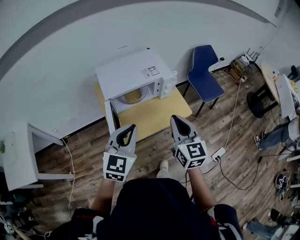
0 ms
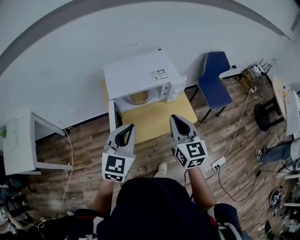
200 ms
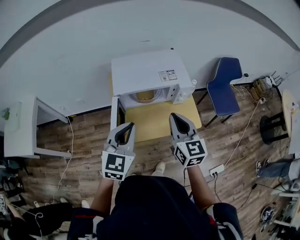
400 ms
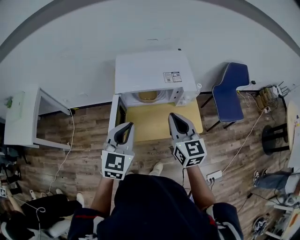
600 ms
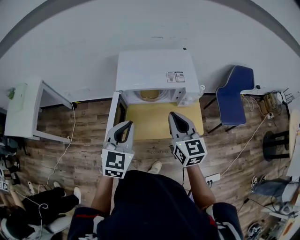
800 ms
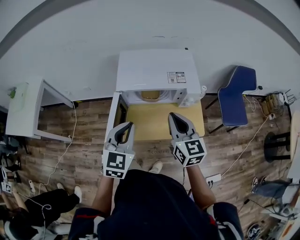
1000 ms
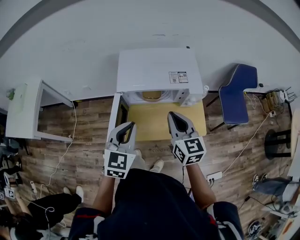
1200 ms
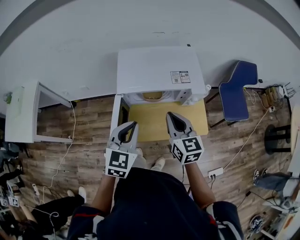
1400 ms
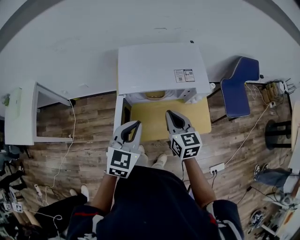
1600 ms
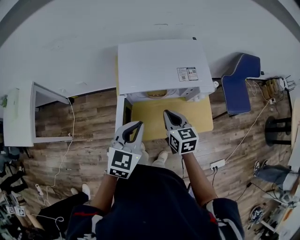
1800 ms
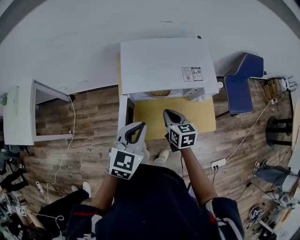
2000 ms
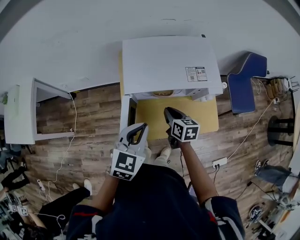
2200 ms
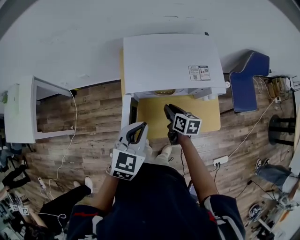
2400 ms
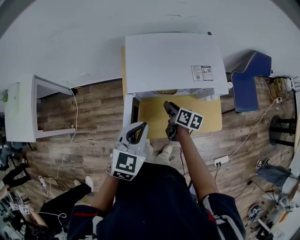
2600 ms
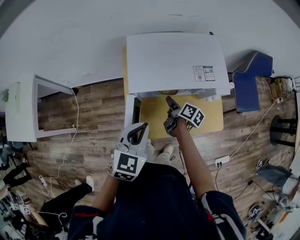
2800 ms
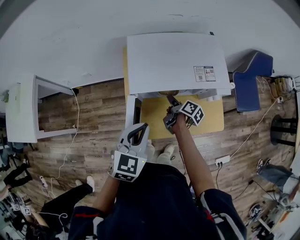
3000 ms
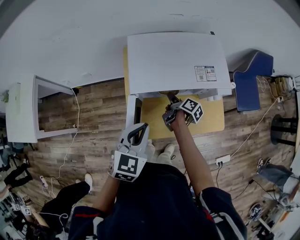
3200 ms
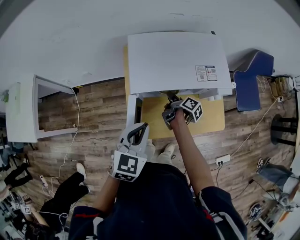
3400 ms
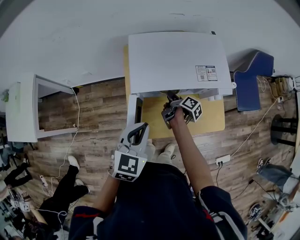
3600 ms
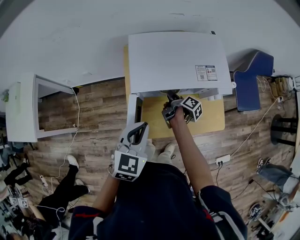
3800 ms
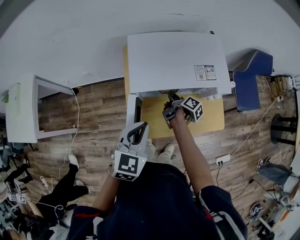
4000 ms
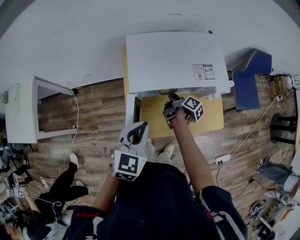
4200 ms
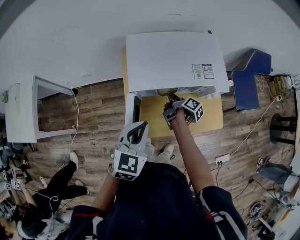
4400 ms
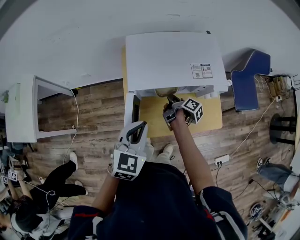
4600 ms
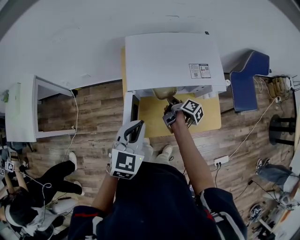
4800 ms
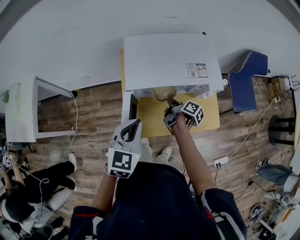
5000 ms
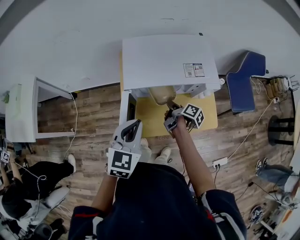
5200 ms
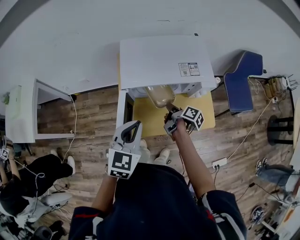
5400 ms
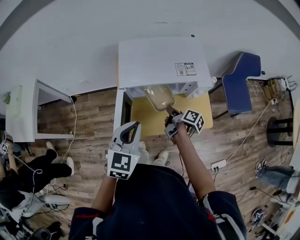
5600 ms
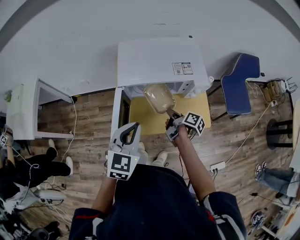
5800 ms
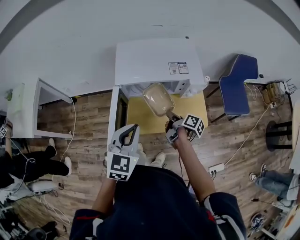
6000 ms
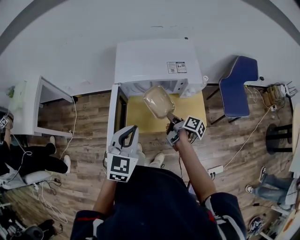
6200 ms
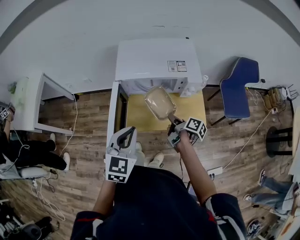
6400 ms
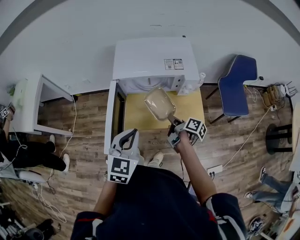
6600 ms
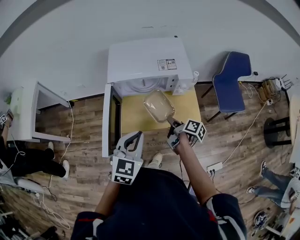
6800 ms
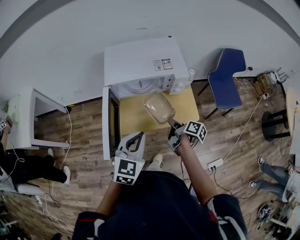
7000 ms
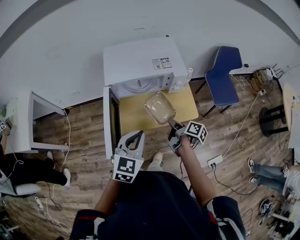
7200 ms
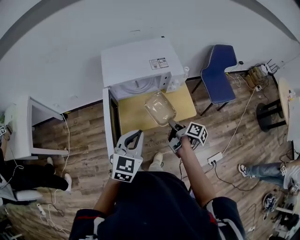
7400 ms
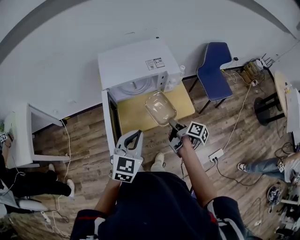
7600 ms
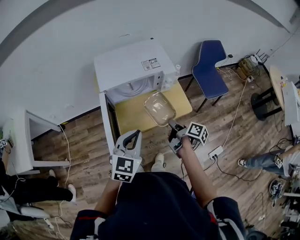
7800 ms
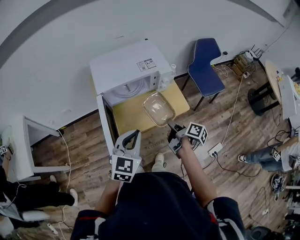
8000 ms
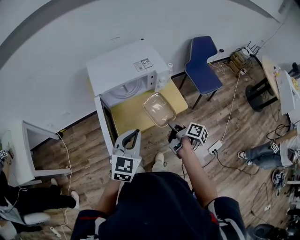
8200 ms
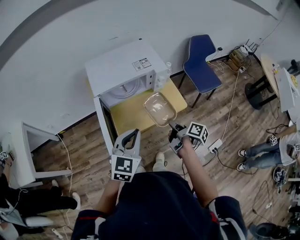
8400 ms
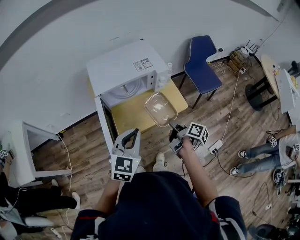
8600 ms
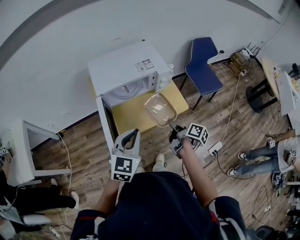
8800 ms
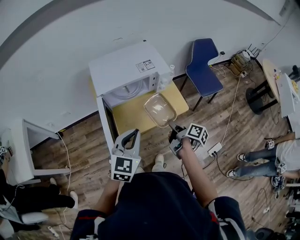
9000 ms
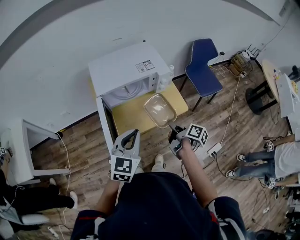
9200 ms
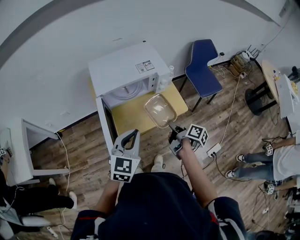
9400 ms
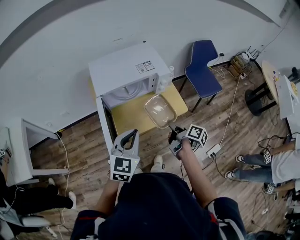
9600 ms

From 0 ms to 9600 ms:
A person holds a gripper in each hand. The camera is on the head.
From 0 ms to 1600 ms: The right gripper moves roughly 20 cm, and turns by roughly 30 degrees, while the left gripper shifts by about 15 cm, and turns by roughly 20 degrees.
From 1600 ms to 3200 ms: The left gripper changes place by some 5 cm, while the right gripper heads downward and forward, covering some 25 cm, twists some 70 degrees clockwise, seen from behind, and opens its fingers.
From 3200 ms to 4800 ms: The grippers move only a little.
From 4800 ms to 6400 ms: Both grippers move backward and to the right, about 15 cm.
From 6400 ms to 8000 ms: The left gripper swivels roughly 20 degrees. Meanwhile the right gripper travels backward and upward by roughly 10 cm, and swivels approximately 20 degrees.
From 8000 ms to 9600 ms: The grippers move only a little.

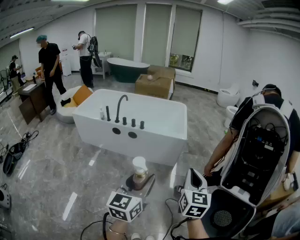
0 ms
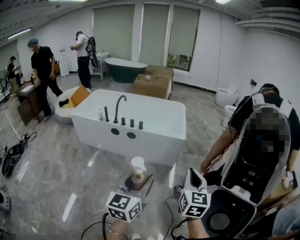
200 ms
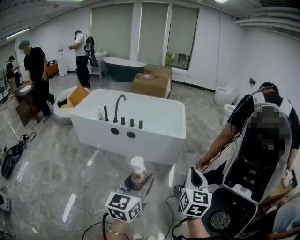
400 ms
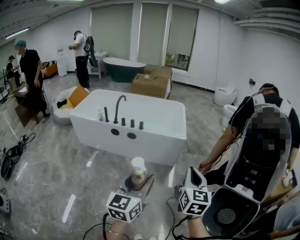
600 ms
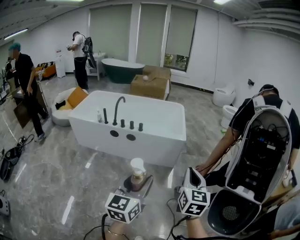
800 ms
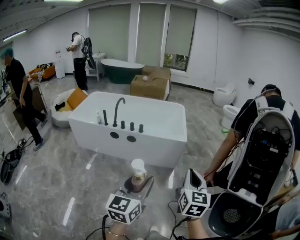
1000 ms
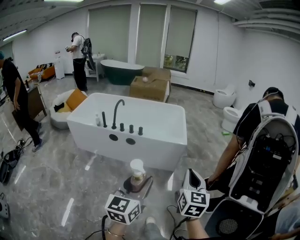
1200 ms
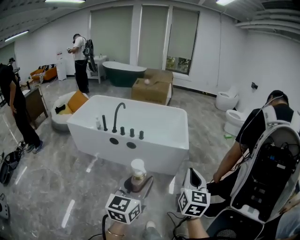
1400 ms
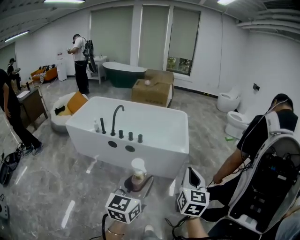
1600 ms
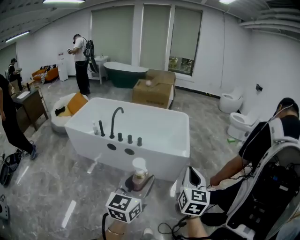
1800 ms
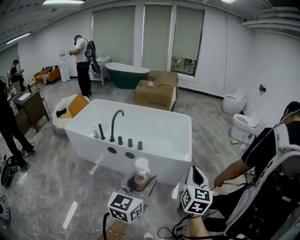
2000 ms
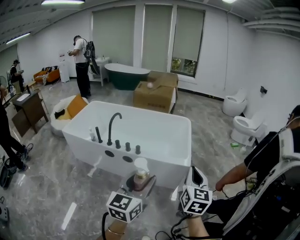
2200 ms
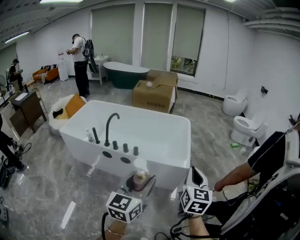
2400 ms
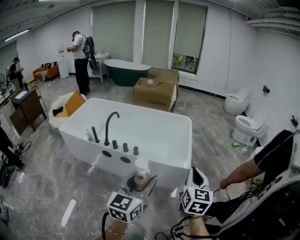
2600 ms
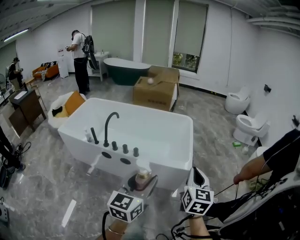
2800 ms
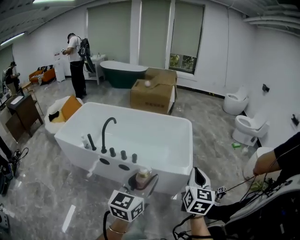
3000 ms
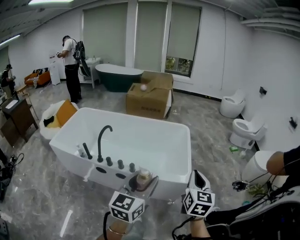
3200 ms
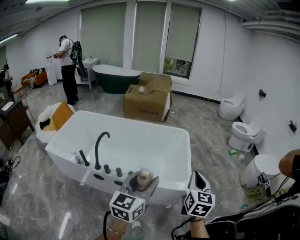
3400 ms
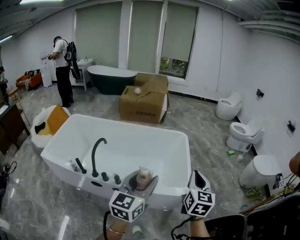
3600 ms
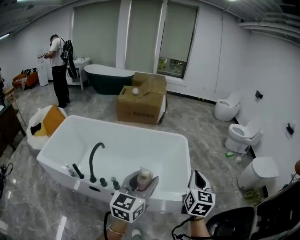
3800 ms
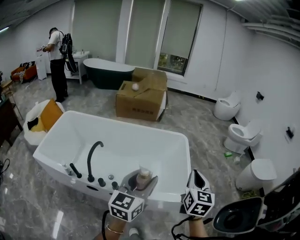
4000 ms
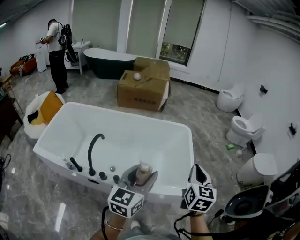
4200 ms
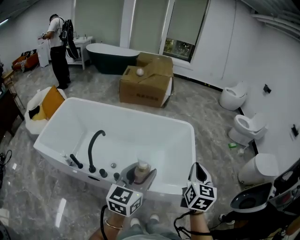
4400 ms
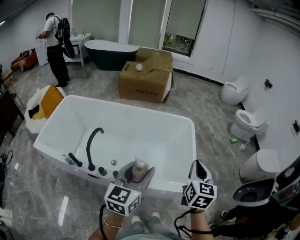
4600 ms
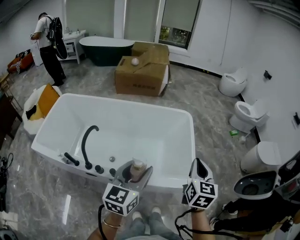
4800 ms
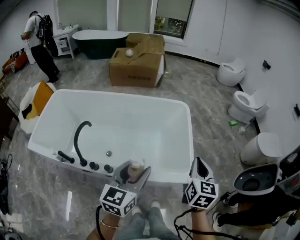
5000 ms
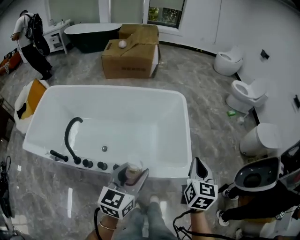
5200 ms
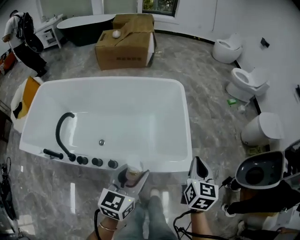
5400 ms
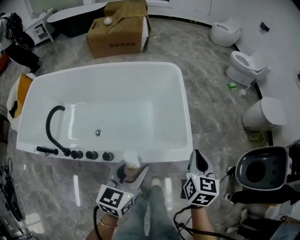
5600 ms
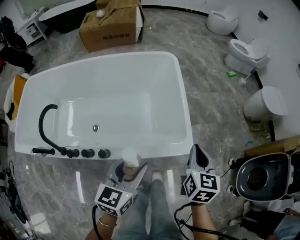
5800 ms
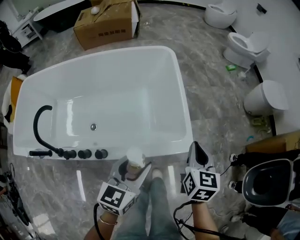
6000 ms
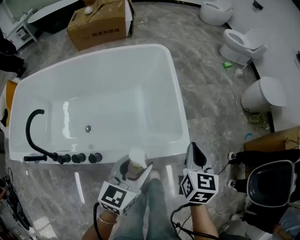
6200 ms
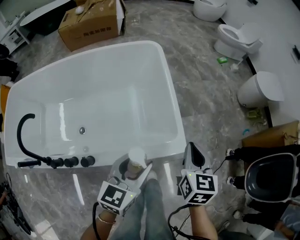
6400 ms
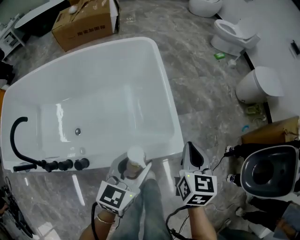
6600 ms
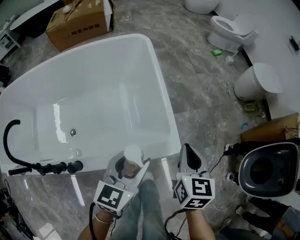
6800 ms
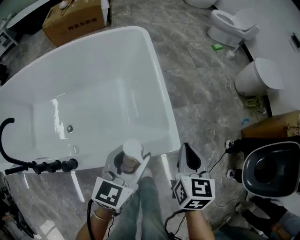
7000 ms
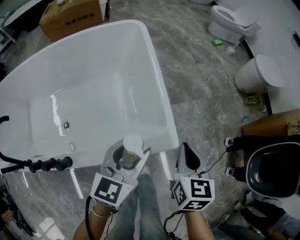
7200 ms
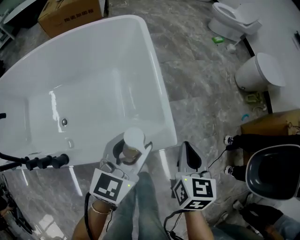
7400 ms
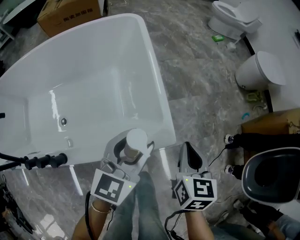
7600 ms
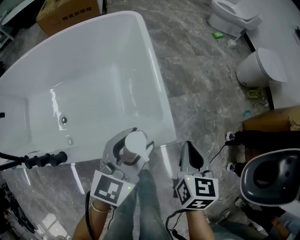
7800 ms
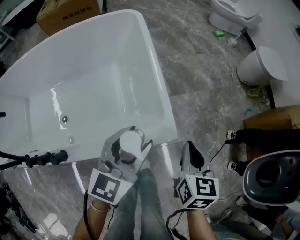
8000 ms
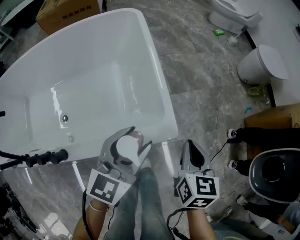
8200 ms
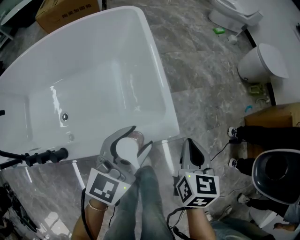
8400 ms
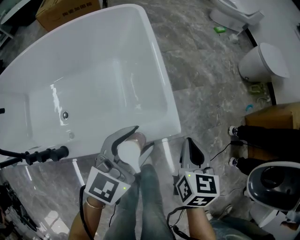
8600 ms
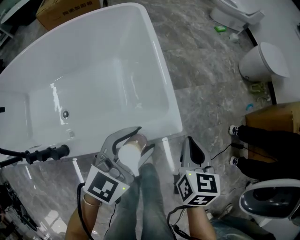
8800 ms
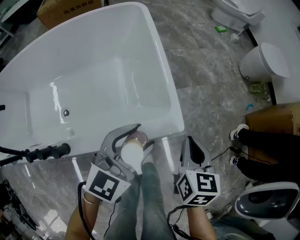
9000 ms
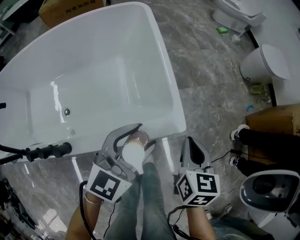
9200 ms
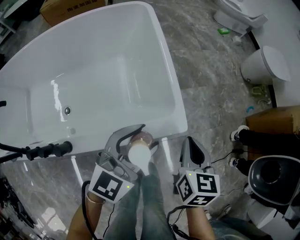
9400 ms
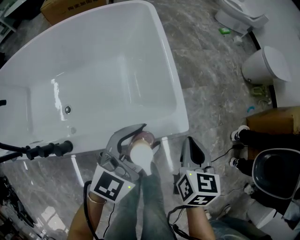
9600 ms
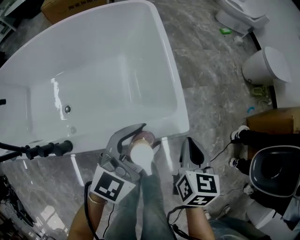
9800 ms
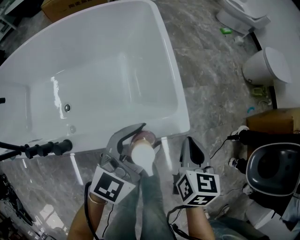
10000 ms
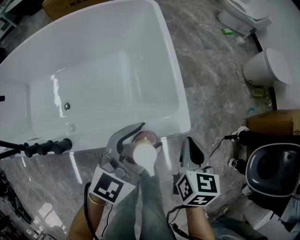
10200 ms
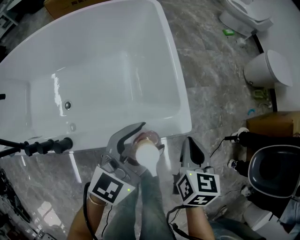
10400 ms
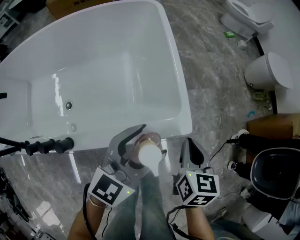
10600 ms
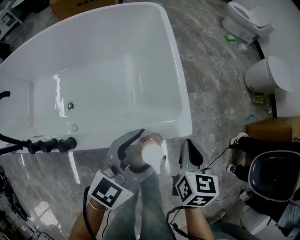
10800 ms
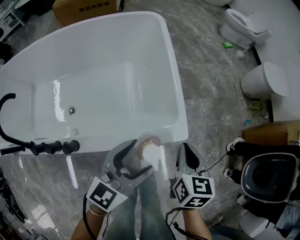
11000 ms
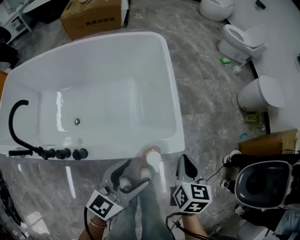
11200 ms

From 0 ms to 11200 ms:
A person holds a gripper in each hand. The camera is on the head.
From 0 ms to 1600 ms: The grippers both shift forward by roughly 15 cm.
From 1600 ms to 3200 ms: Both grippers move forward, about 35 cm.
From 3200 ms to 4800 ms: Both grippers travel together forward and to the left, approximately 25 cm.
From 4800 ms to 6400 ms: The right gripper is displaced downward and to the right by roughly 30 cm. Meanwhile the left gripper heads downward, to the right and forward, covering approximately 30 cm, and turns by some 30 degrees.
From 6400 ms to 8000 ms: The right gripper moves downward and to the right, about 15 cm. Meanwhile the left gripper travels forward, to the right and downward by about 10 cm.
From 9600 ms to 11200 ms: The right gripper moves upward, some 5 cm; the left gripper travels backward and upward by roughly 10 cm, and swivels approximately 30 degrees.

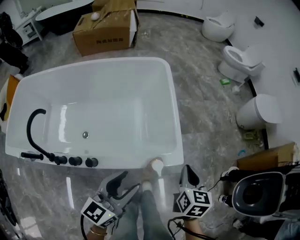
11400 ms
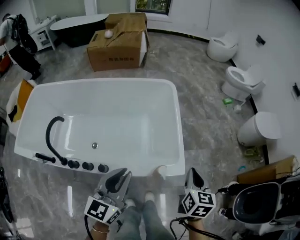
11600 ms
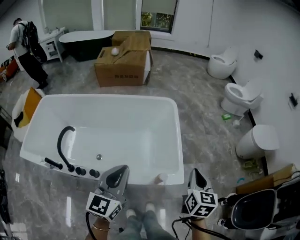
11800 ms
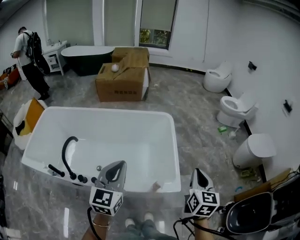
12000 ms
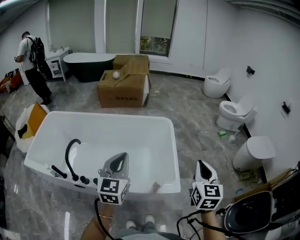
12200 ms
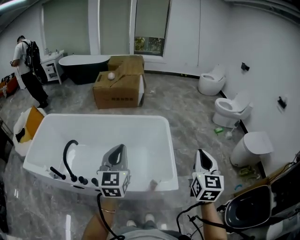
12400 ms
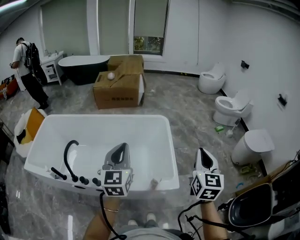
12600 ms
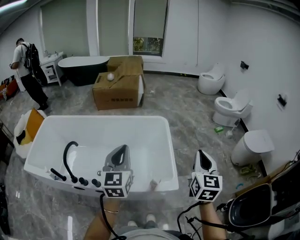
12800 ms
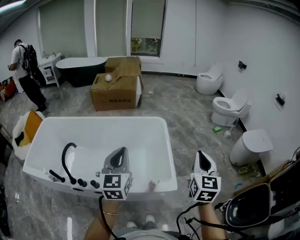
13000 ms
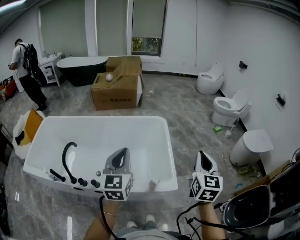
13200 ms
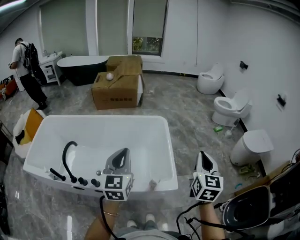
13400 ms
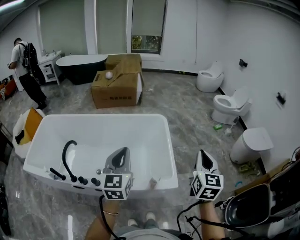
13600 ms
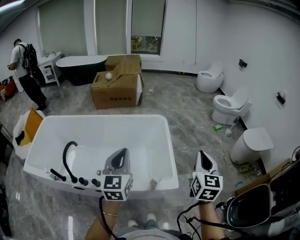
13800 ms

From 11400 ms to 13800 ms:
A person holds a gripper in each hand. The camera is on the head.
From 11400 ms to 12600 ms: The grippers both shift upward by some 25 cm. The left gripper swivels some 40 degrees, and closes up. The right gripper angles its fingers upward, by approximately 30 degrees.
From 12600 ms to 13800 ms: The grippers make only small movements.
